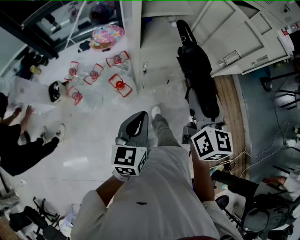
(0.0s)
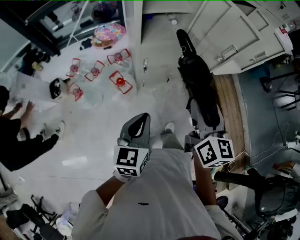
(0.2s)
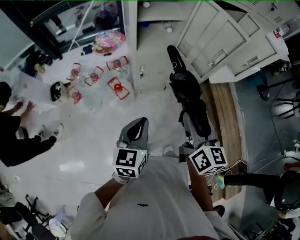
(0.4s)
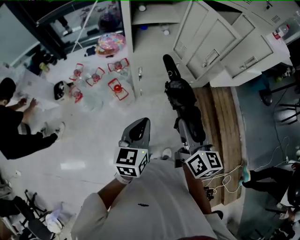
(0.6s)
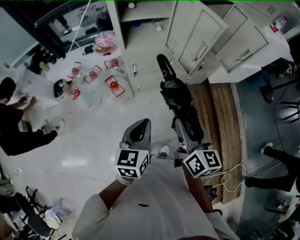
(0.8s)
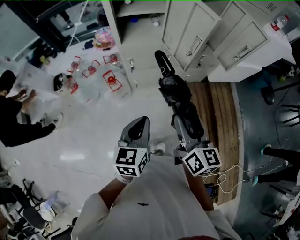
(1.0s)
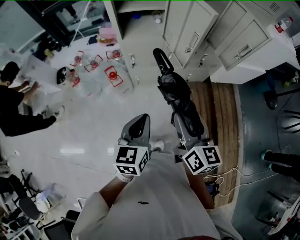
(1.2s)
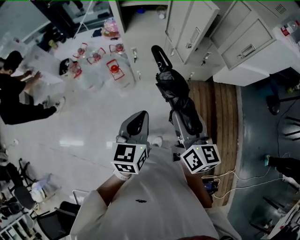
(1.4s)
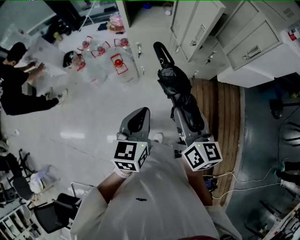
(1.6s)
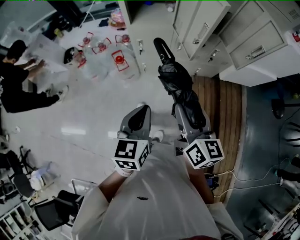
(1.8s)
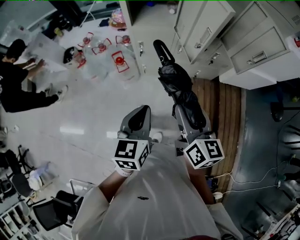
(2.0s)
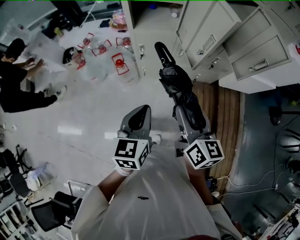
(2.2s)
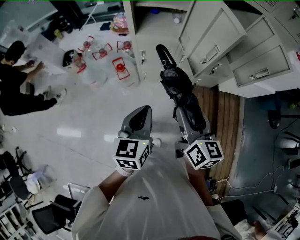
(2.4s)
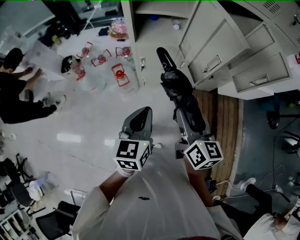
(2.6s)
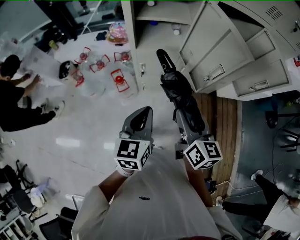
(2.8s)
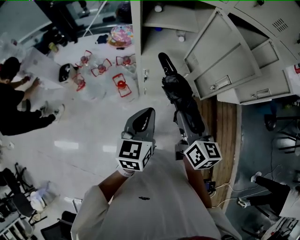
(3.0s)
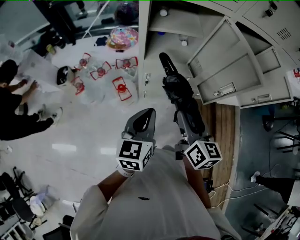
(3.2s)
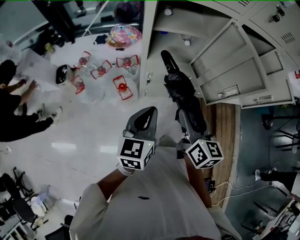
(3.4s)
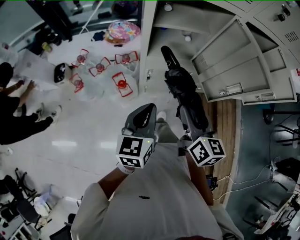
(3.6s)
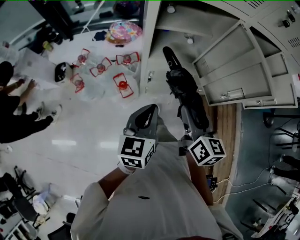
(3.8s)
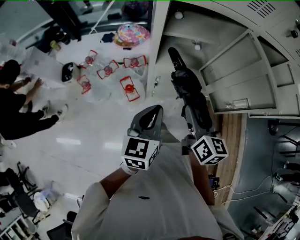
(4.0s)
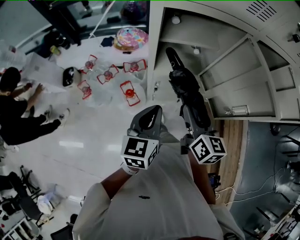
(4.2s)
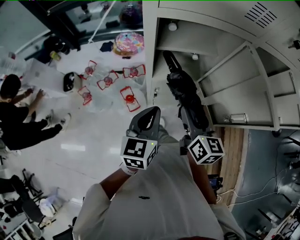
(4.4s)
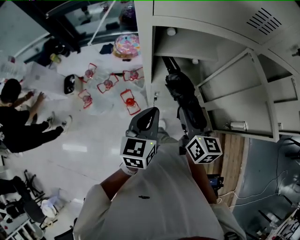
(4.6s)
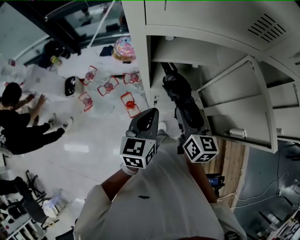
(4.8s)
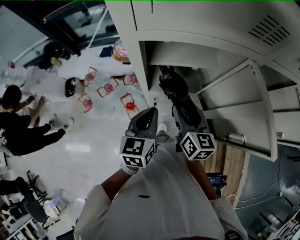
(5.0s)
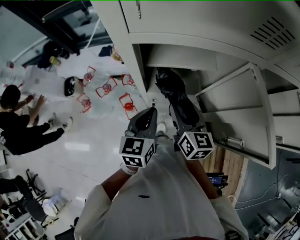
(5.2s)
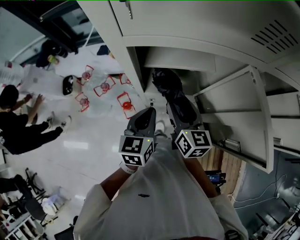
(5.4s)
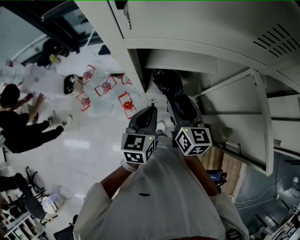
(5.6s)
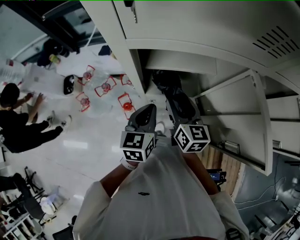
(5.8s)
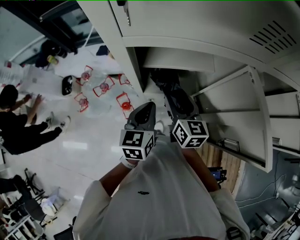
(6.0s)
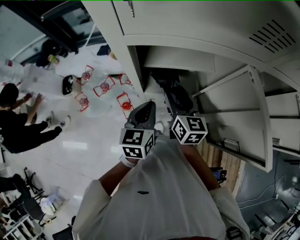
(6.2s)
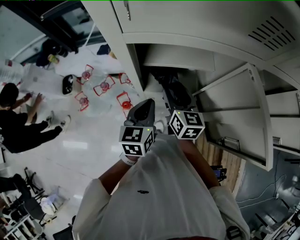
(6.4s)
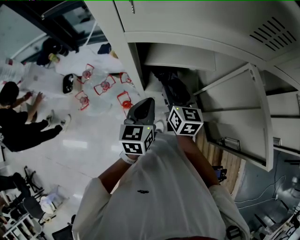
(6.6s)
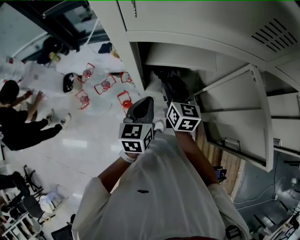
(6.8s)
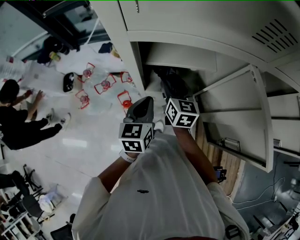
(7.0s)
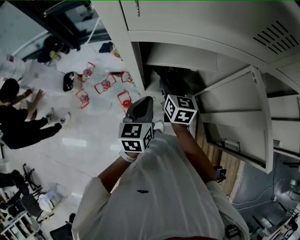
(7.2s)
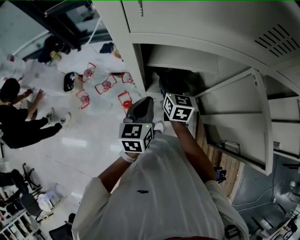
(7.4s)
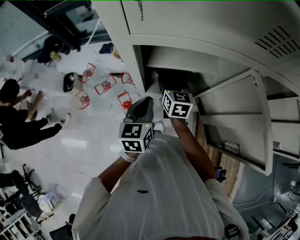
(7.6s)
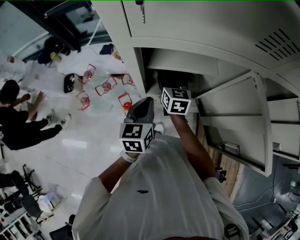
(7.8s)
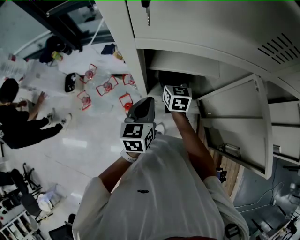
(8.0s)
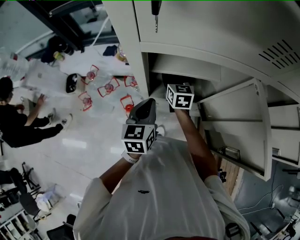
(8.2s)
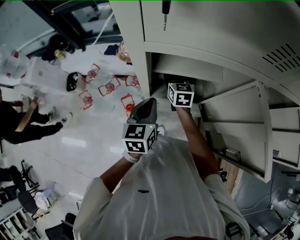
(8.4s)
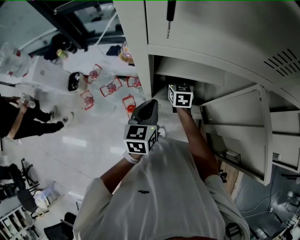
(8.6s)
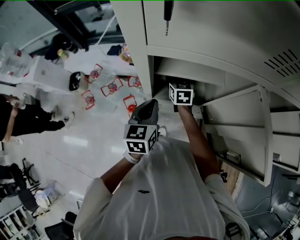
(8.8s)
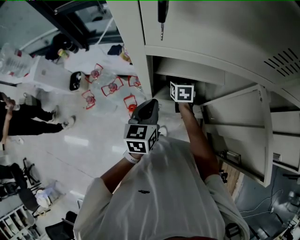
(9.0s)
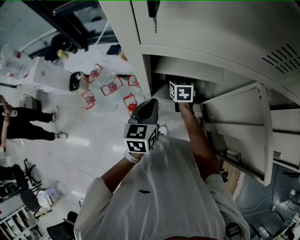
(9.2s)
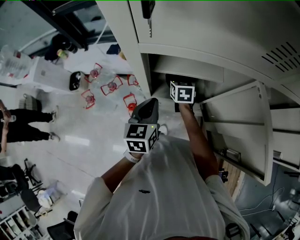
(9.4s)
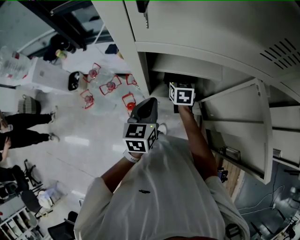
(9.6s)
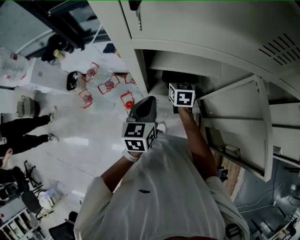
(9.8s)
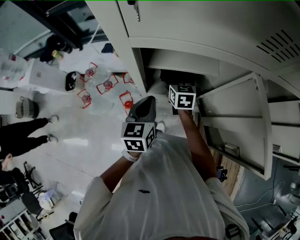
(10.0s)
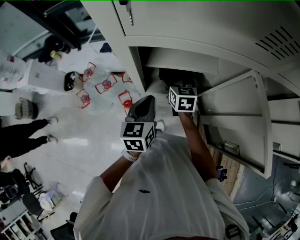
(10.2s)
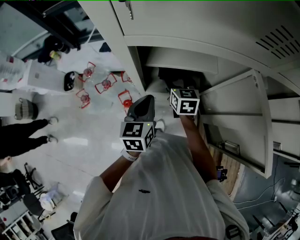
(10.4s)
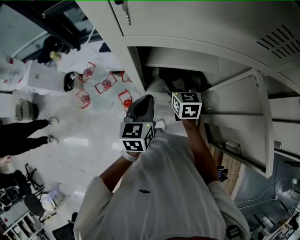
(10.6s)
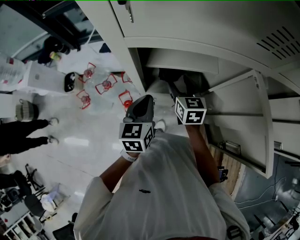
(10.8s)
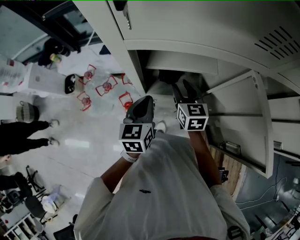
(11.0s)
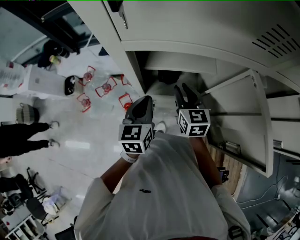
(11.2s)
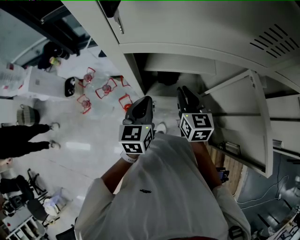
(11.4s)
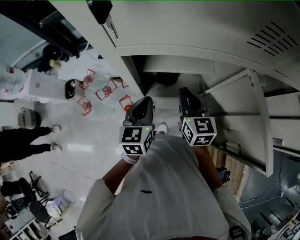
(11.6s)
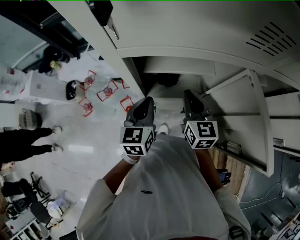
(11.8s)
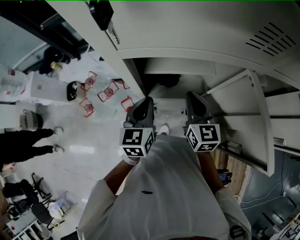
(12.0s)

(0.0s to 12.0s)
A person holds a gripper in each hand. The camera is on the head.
0.0s - 1.6s: The grippers both shift to the right and backward by some 25 cm. The right gripper changes its angle by some 30 degrees.
1.6s - 3.0s: Both grippers travel together forward and to the left, approximately 20 cm.
3.0s - 4.4s: The grippers both shift forward by about 15 cm.
4.4s - 6.0s: Both grippers move forward, some 10 cm.
6.0s - 7.6s: The right gripper heads forward, covering about 10 cm.
7.6s - 9.0s: The right gripper travels downward and forward by some 10 cm.
9.0s - 10.4s: The right gripper travels backward and upward by roughly 10 cm.
10.4s - 12.0s: The right gripper is displaced upward and backward by some 15 cm, and closes up.

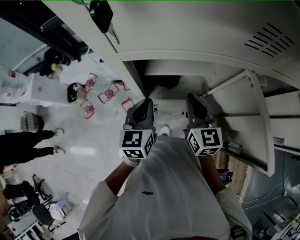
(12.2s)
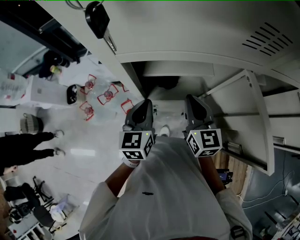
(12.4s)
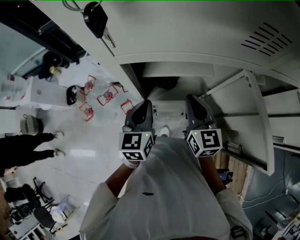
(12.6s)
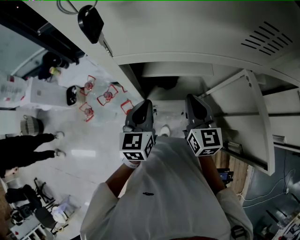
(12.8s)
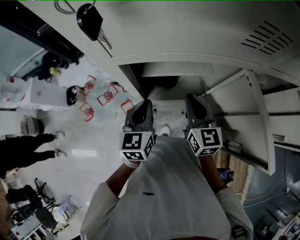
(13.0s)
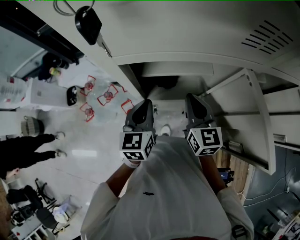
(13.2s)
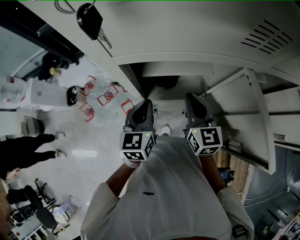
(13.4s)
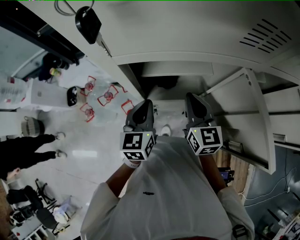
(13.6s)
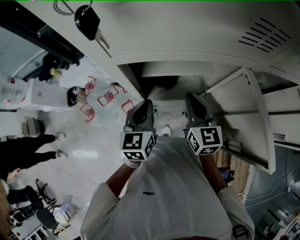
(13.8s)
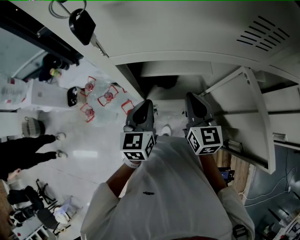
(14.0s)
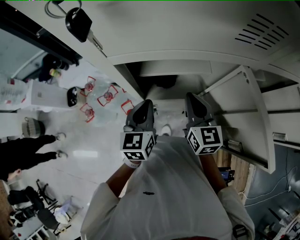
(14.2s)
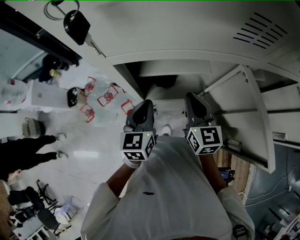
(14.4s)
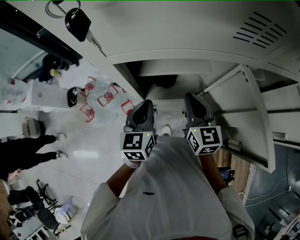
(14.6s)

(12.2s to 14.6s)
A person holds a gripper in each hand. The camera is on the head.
12.2s - 14.6s: Neither gripper changes place.

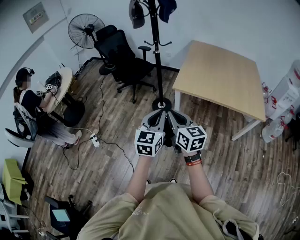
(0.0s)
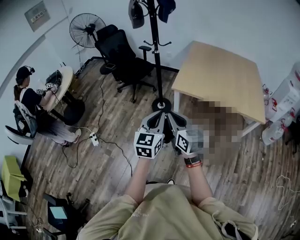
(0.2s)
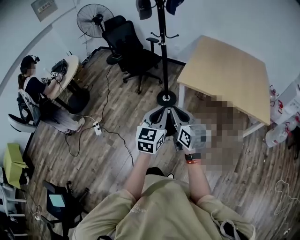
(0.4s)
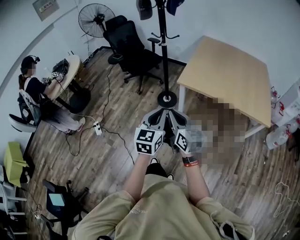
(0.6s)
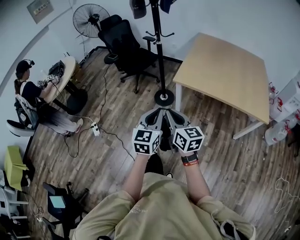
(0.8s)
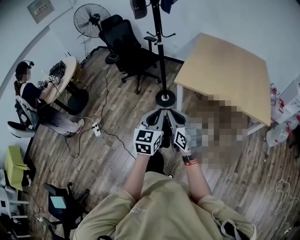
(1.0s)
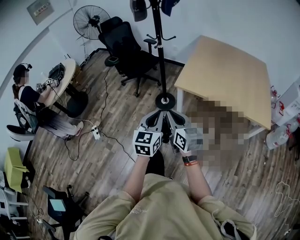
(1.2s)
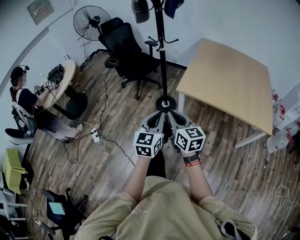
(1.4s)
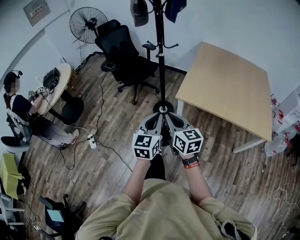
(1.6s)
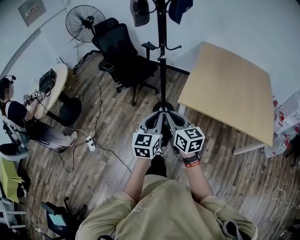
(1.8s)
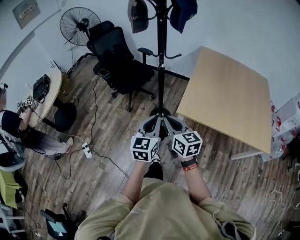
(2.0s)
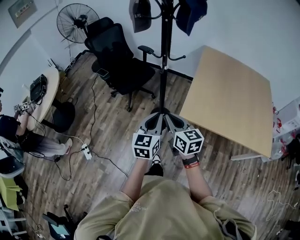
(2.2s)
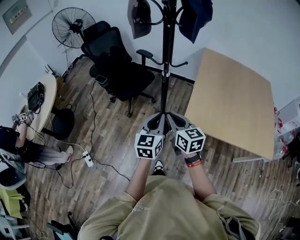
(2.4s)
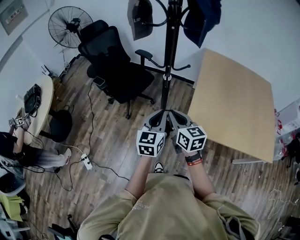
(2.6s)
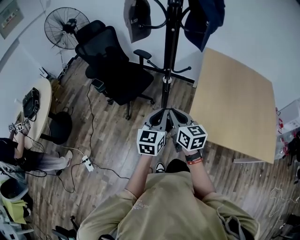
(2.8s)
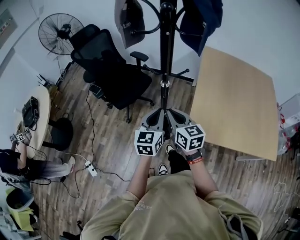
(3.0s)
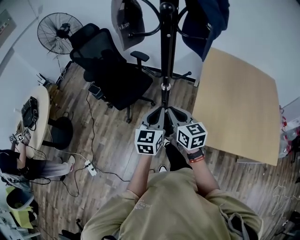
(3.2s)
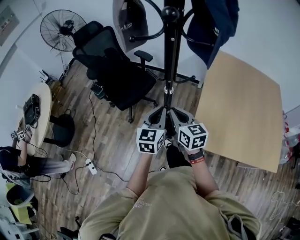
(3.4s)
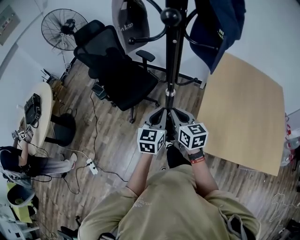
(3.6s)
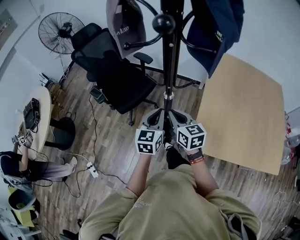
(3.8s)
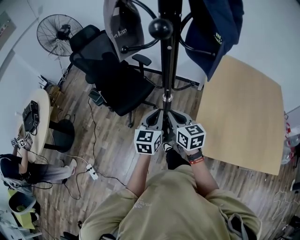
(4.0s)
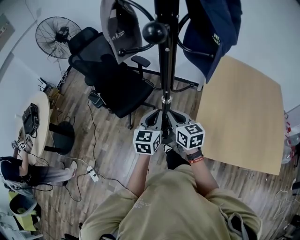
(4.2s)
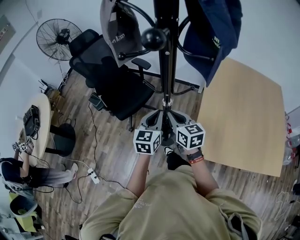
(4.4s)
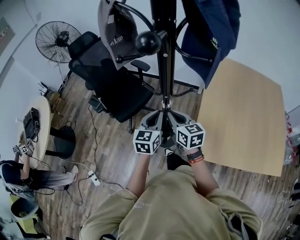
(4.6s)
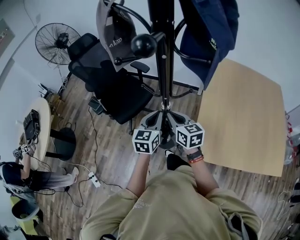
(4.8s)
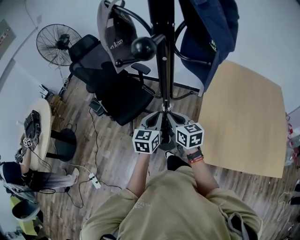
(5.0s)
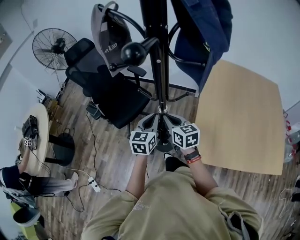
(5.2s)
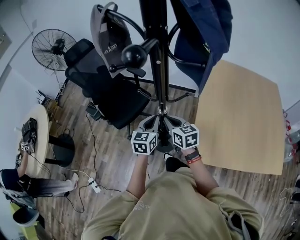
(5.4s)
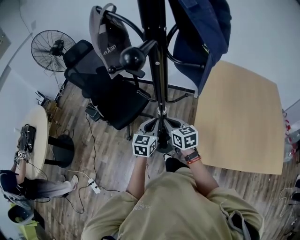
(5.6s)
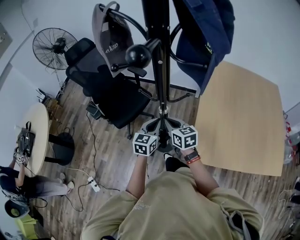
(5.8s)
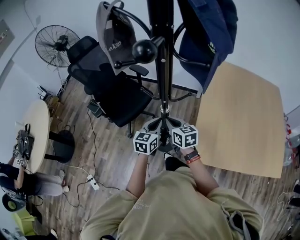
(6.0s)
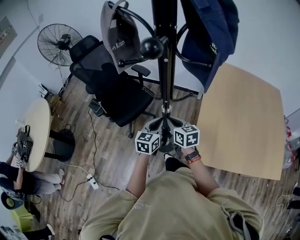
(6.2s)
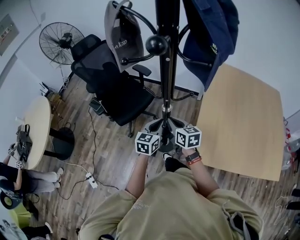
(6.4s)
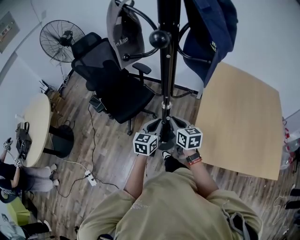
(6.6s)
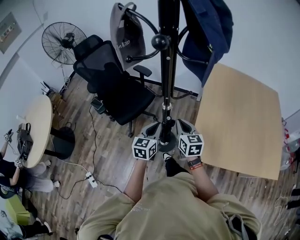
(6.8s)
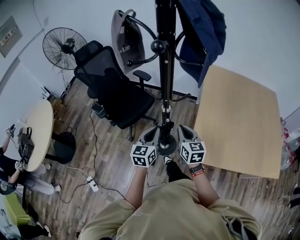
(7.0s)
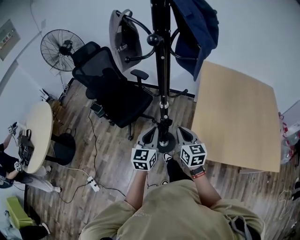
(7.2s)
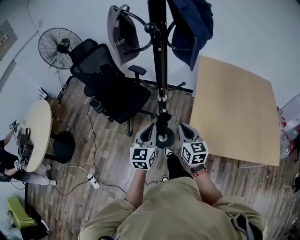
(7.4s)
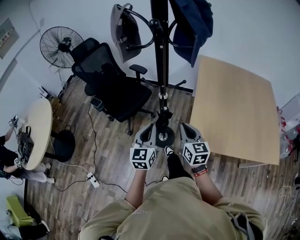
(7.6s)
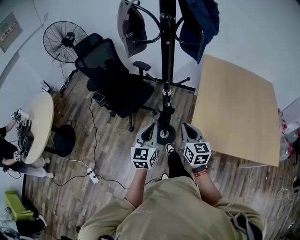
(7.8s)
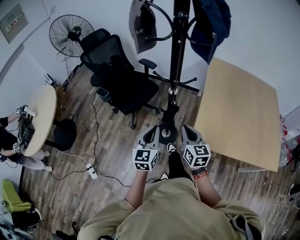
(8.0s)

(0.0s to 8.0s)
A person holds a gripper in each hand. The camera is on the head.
0.0s - 1.6s: The grippers both shift forward by approximately 20 cm.
1.6s - 3.2s: The two grippers travel together, forward, about 50 cm.
3.2s - 4.8s: Both grippers move forward, approximately 15 cm.
4.8s - 6.4s: The left gripper goes roughly 5 cm downward.
6.4s - 8.0s: Both grippers travel together backward, some 20 cm.

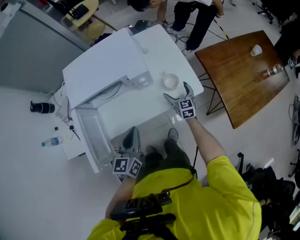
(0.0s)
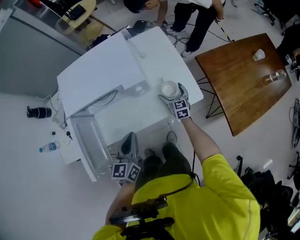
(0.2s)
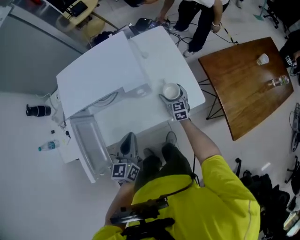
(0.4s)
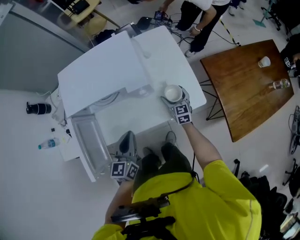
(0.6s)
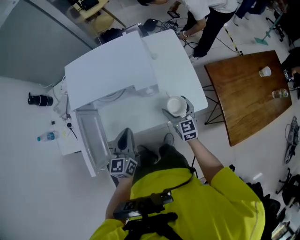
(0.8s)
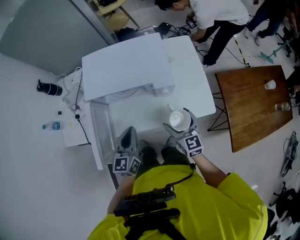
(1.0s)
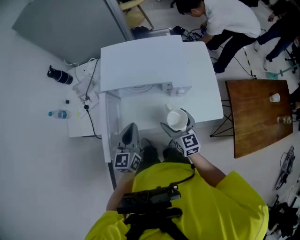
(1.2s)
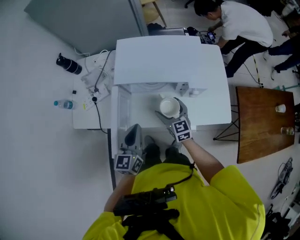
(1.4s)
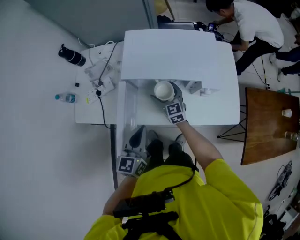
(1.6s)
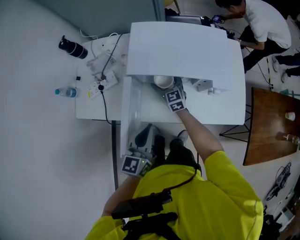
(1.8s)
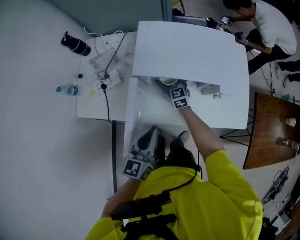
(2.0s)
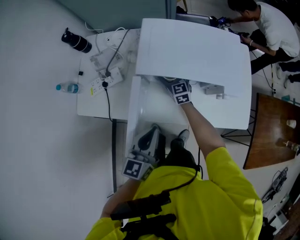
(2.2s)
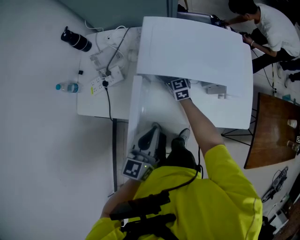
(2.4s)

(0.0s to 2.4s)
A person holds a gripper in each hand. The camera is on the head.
0.0s - 1.2s: The right gripper heads to the left and upward, covering approximately 25 cm, and changes its angle by approximately 20 degrees, while the left gripper travels to the left by roughly 15 cm.
1.2s - 2.4s: The left gripper moves to the left, some 5 cm; the right gripper moves forward, to the left and downward, about 35 cm.
